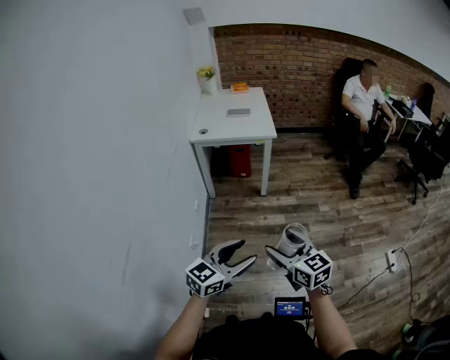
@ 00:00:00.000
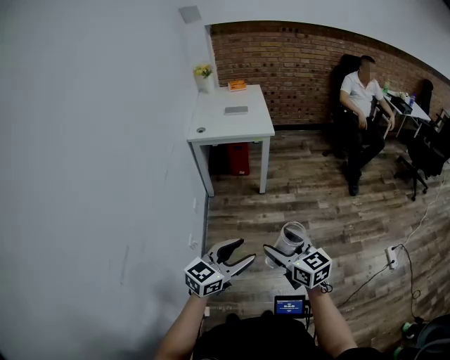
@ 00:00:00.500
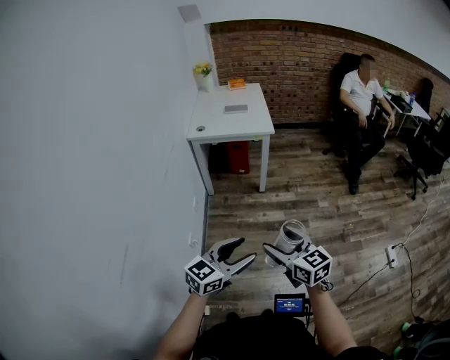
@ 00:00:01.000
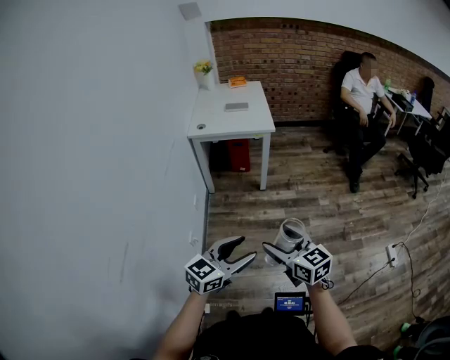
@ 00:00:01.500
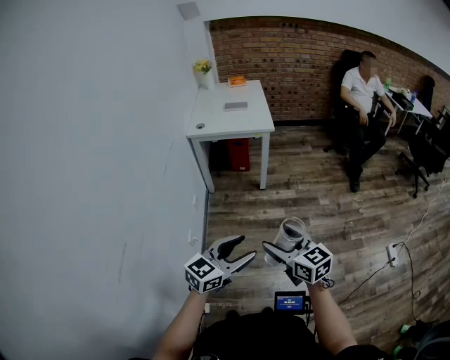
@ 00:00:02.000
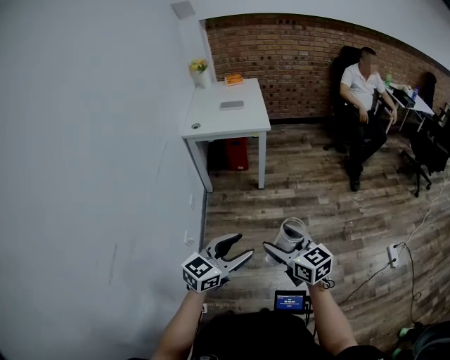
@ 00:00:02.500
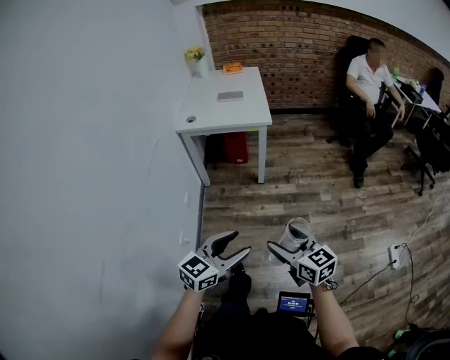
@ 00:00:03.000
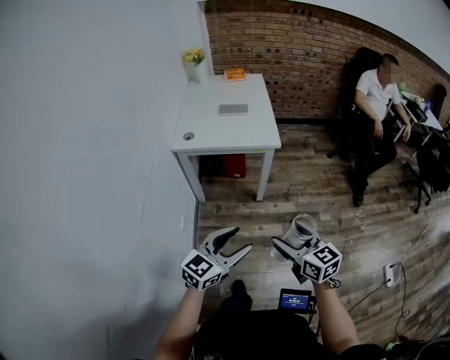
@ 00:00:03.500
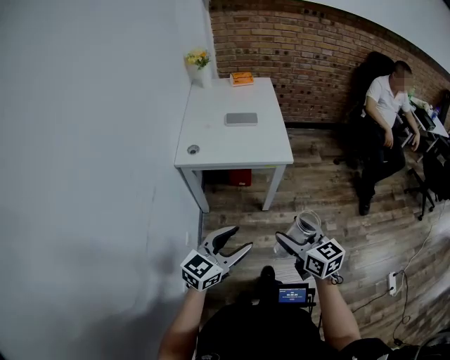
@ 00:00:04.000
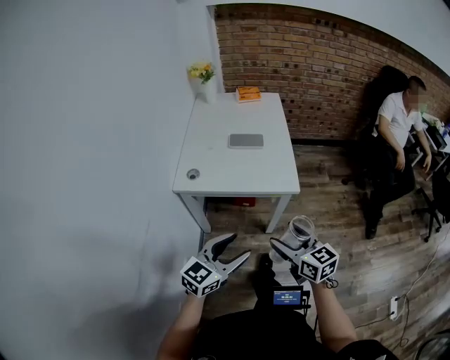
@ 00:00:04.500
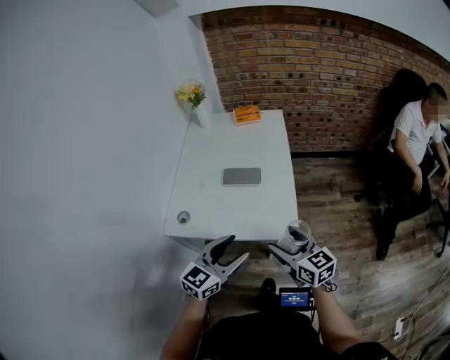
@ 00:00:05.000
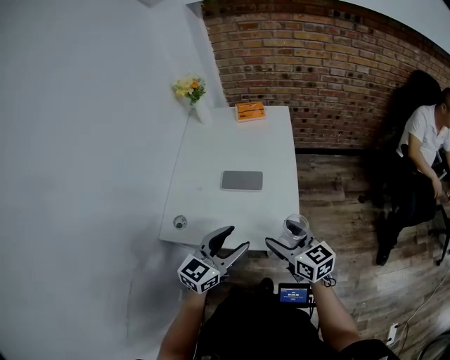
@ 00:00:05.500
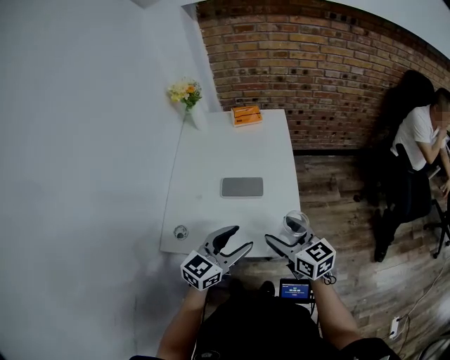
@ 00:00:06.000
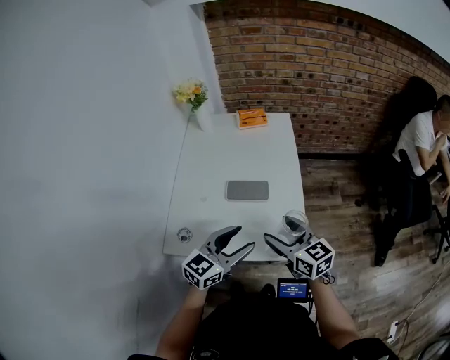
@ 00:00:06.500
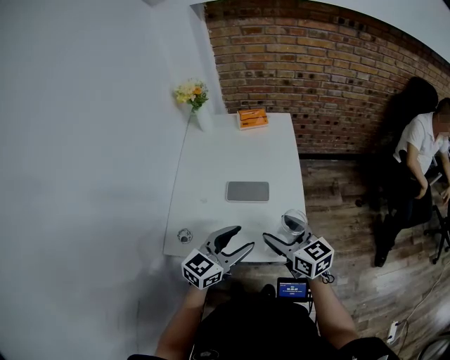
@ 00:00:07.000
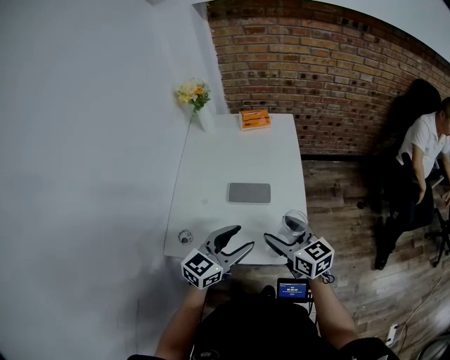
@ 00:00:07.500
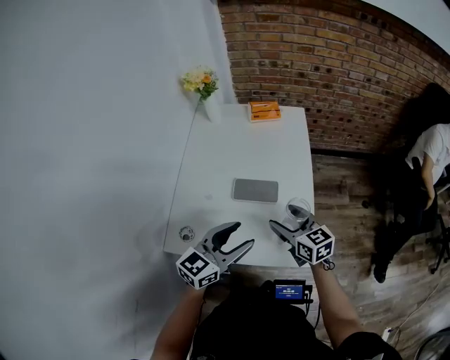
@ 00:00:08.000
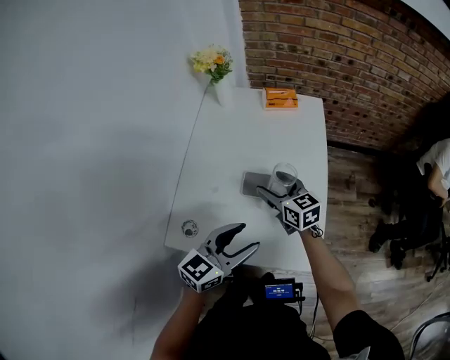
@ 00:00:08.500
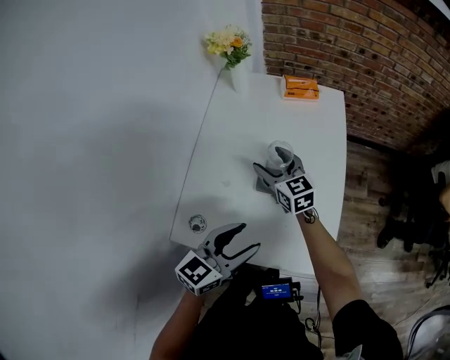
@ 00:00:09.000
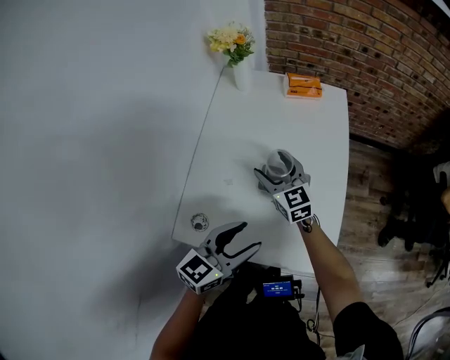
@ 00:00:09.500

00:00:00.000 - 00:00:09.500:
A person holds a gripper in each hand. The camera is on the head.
00:00:00.000 - 00:00:02.000: Neither gripper changes place.
00:00:02.000 - 00:00:04.000: The pair of grippers is taken forward, approximately 40 cm.
00:00:04.000 - 00:00:05.500: Both grippers are carried forward, about 40 cm.
00:00:05.500 - 00:00:07.500: Both grippers move forward, about 5 cm.
00:00:07.500 - 00:00:09.500: The left gripper is displaced to the left by some 5 cm; the right gripper shifts some 25 cm forward and to the left.

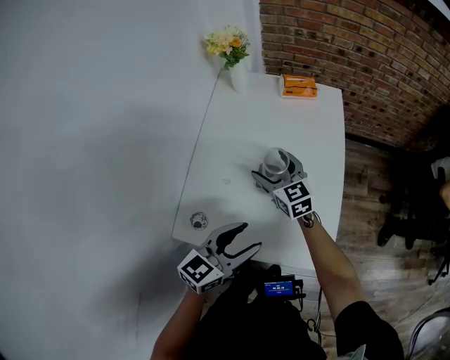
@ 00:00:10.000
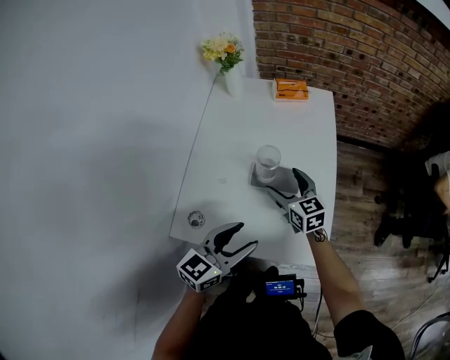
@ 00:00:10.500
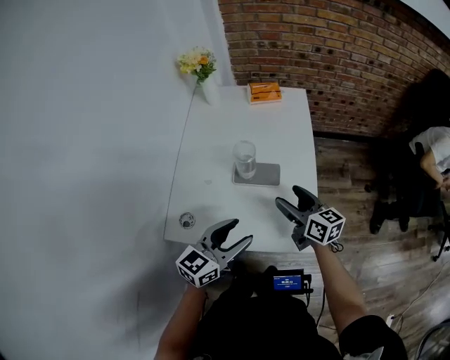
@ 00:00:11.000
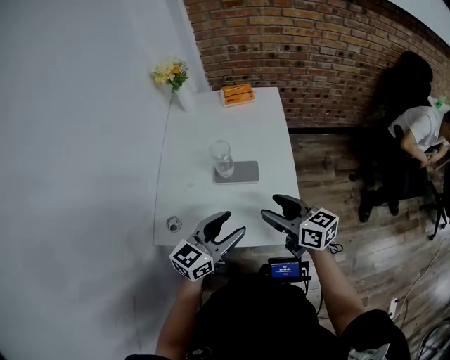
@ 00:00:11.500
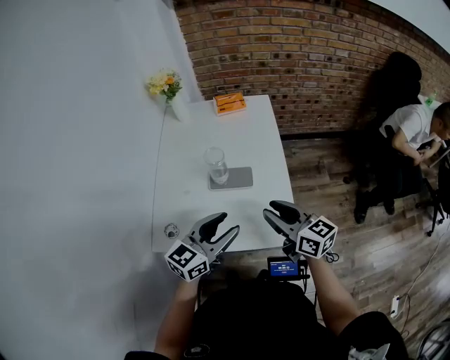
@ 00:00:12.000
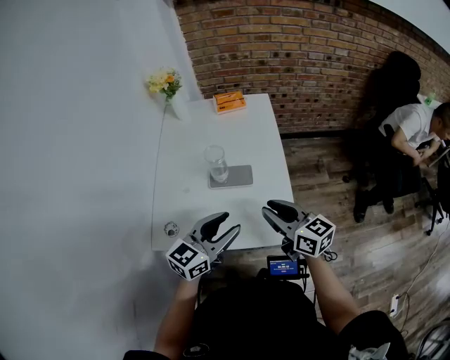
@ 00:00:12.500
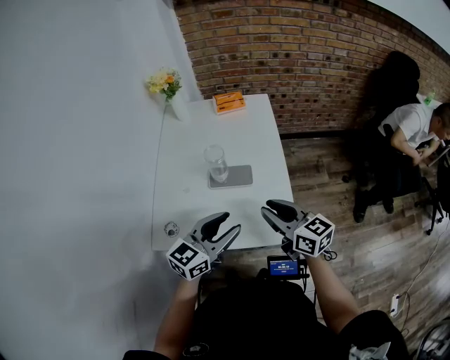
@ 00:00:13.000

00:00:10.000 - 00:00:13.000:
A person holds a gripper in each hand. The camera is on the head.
00:00:10.000 - 00:00:11.500: The left gripper moves to the right, roughly 5 cm. The right gripper heads backward and to the right, covering approximately 25 cm, and swivels roughly 30 degrees.
00:00:11.500 - 00:00:13.000: The right gripper closes.

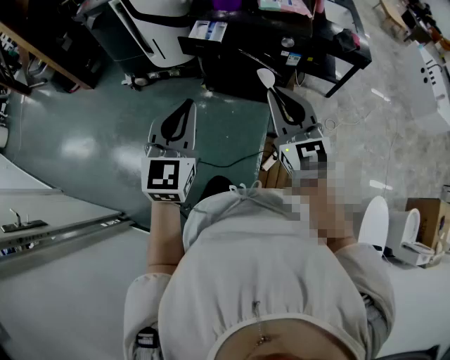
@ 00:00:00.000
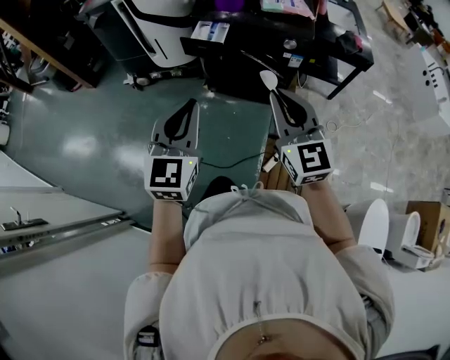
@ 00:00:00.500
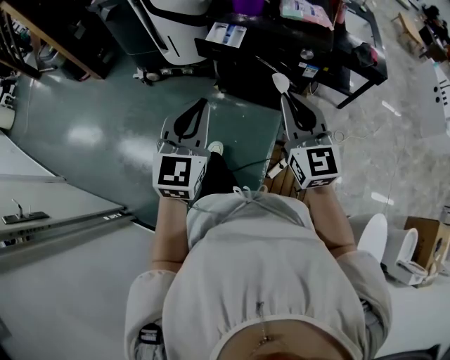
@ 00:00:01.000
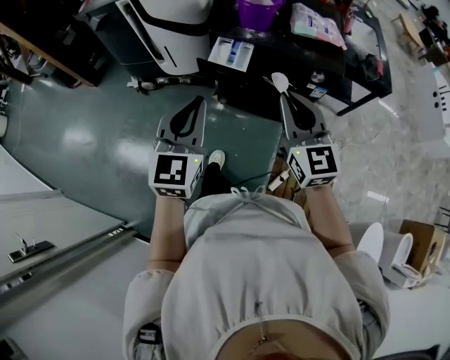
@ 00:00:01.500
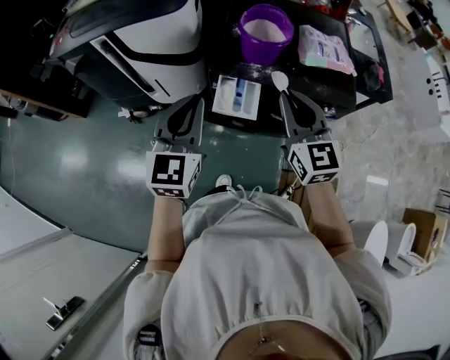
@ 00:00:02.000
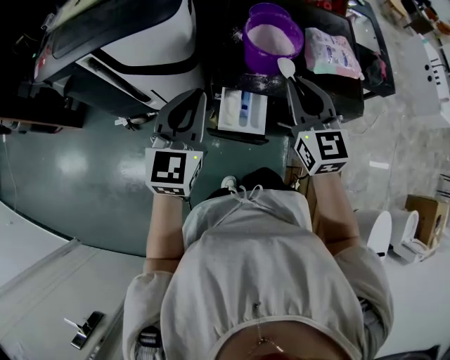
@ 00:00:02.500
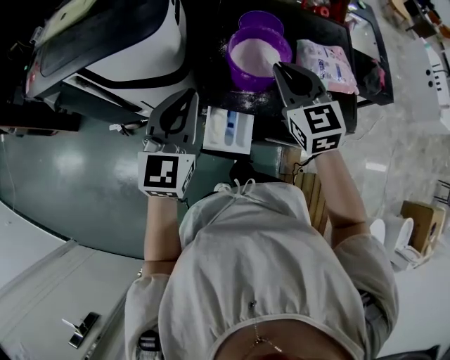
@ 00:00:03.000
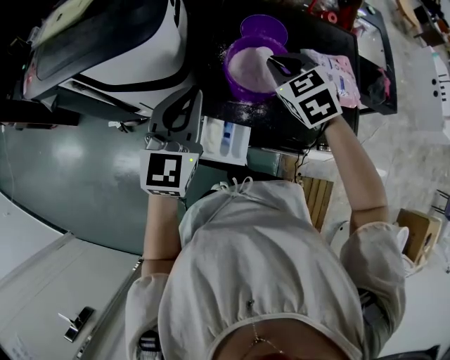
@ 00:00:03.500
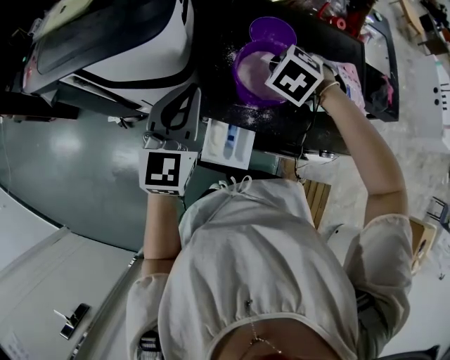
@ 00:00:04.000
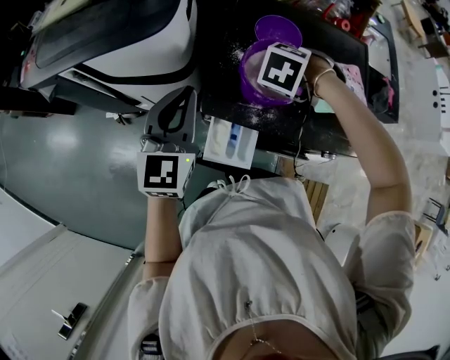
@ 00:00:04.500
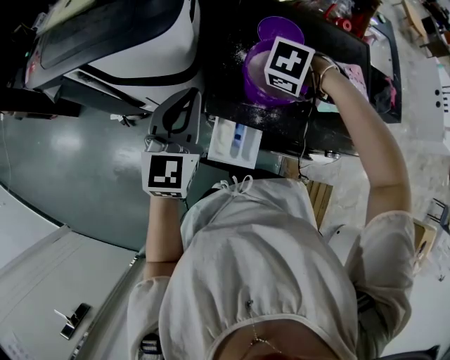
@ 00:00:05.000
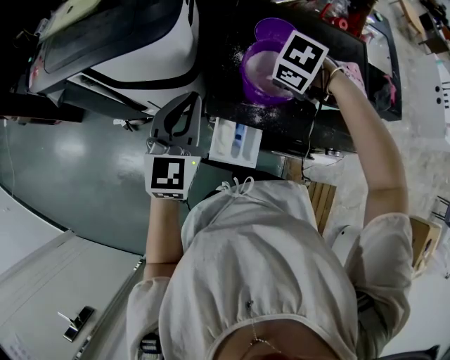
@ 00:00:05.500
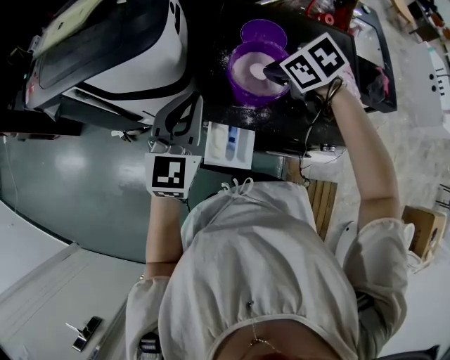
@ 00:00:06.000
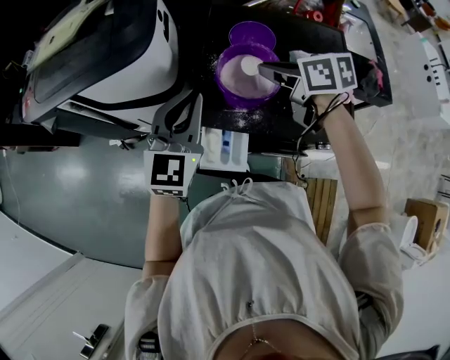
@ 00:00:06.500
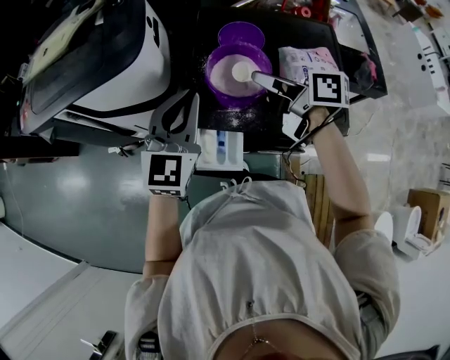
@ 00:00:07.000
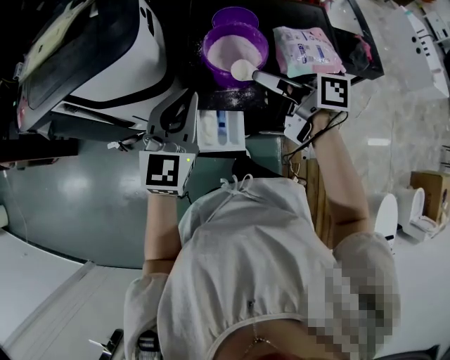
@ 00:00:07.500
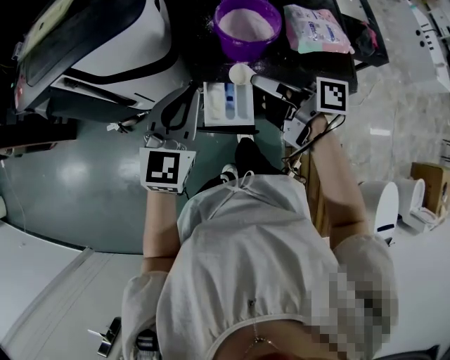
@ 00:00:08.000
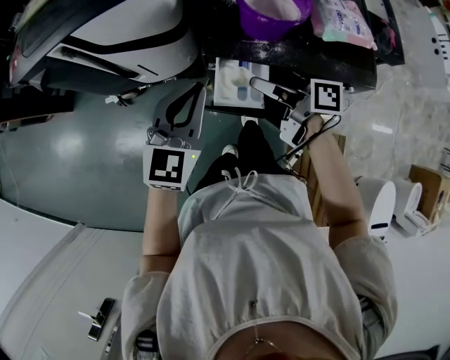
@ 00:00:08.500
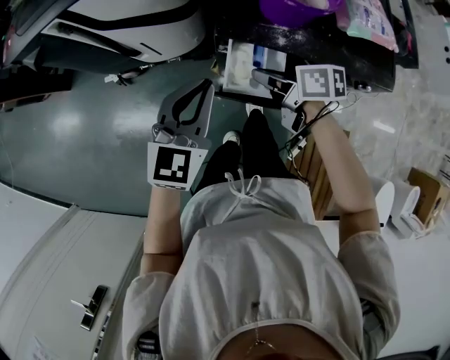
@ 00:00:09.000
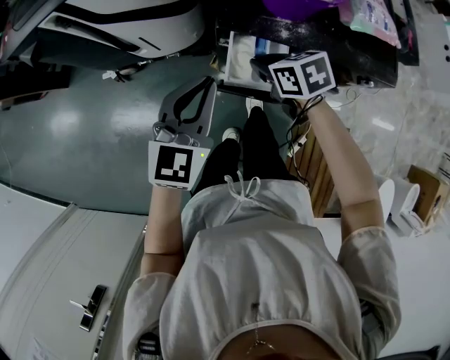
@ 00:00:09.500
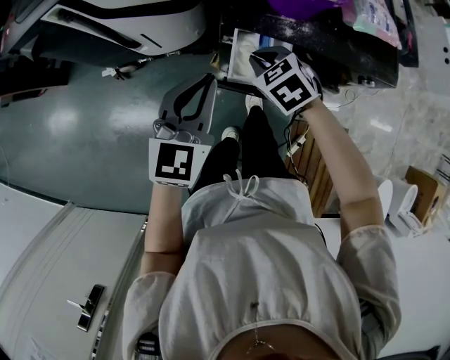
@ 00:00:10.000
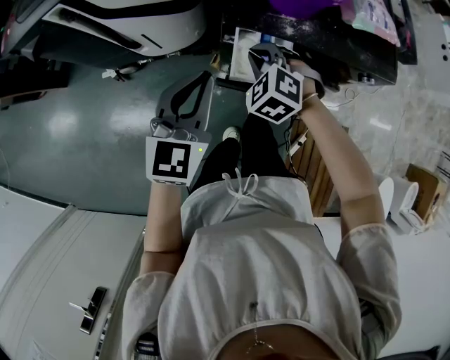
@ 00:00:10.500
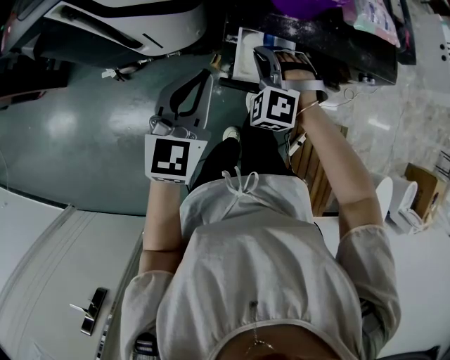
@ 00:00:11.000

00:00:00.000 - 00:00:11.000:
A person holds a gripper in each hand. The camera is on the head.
00:00:00.000 - 00:00:02.000: The two grippers travel together, forward, approximately 40 cm.
00:00:02.000 - 00:00:03.500: The two grippers go about 25 cm forward. The right gripper tilts its fingers about 30 degrees downward.
00:00:03.500 - 00:00:05.500: The right gripper is displaced downward by roughly 5 cm, and points its fingers roughly 40 degrees further downward.
00:00:05.500 - 00:00:07.500: The right gripper ends up approximately 15 cm from where it was, and tilts its fingers some 70 degrees upward. The left gripper shifts by about 5 cm.
00:00:07.500 - 00:00:09.000: The left gripper goes about 20 cm downward, to the left and backward; the right gripper goes some 25 cm downward and to the left, and changes its angle by approximately 30 degrees.
00:00:09.000 - 00:00:11.000: The right gripper rolls counterclockwise, seen from behind, by some 100 degrees.

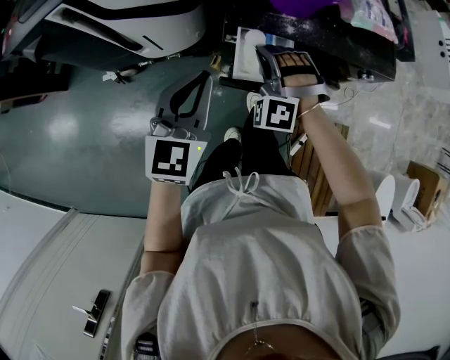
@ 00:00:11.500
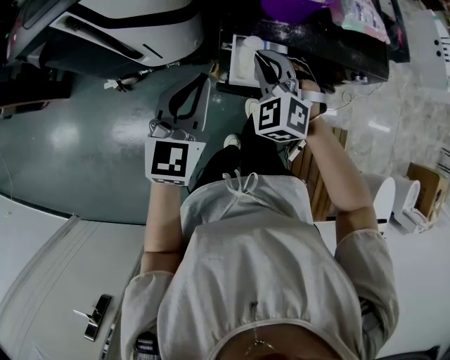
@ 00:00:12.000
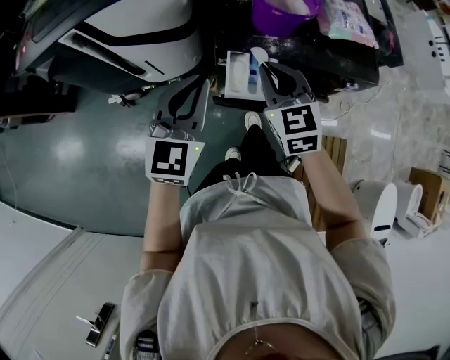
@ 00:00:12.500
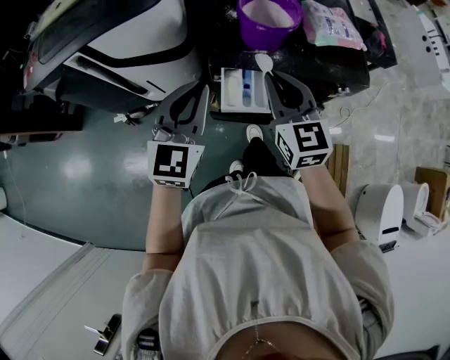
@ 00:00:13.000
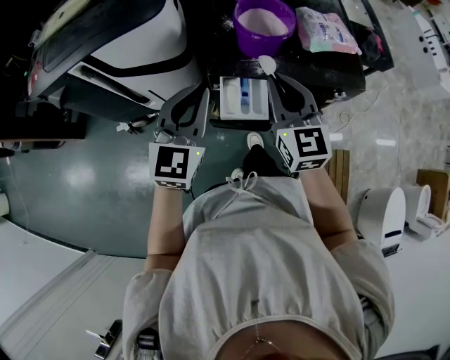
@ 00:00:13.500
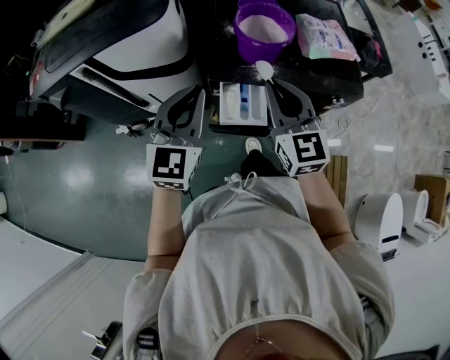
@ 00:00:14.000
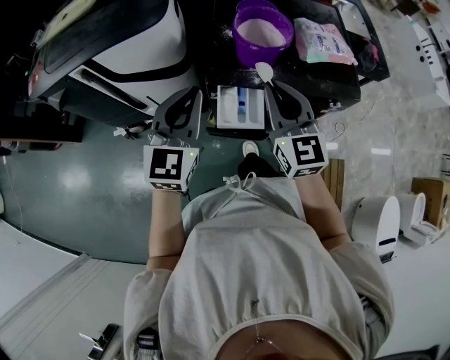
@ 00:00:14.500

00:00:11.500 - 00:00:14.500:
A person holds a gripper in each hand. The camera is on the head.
00:00:11.500 - 00:00:13.000: The right gripper goes roughly 20 cm upward and to the right, and rolls clockwise, seen from behind, by some 80 degrees; the left gripper moves upward, about 10 cm.
00:00:13.000 - 00:00:14.500: The grippers move only a little.
